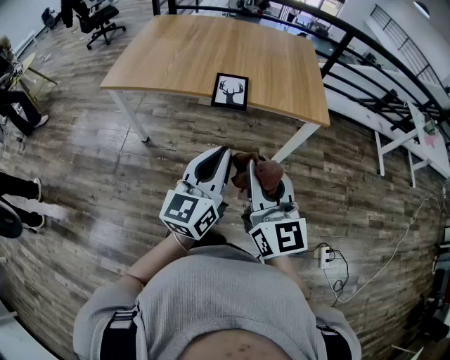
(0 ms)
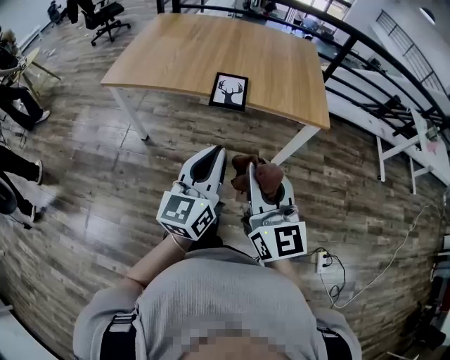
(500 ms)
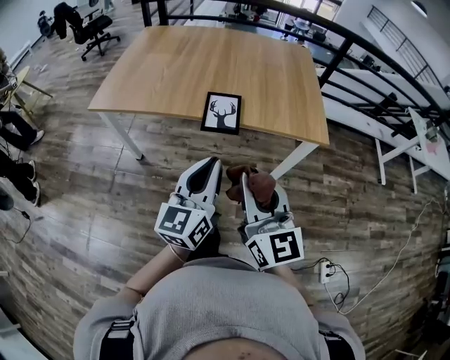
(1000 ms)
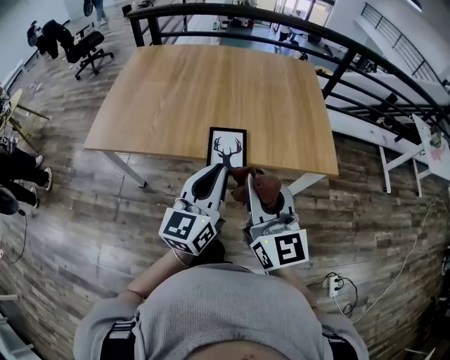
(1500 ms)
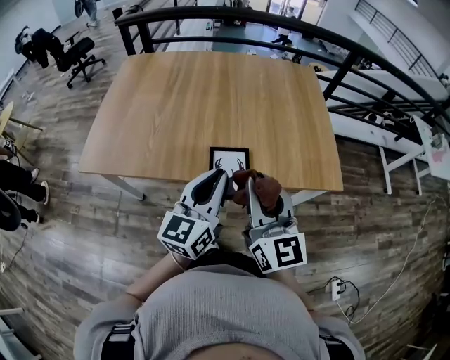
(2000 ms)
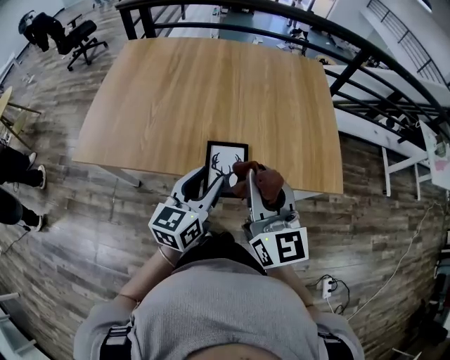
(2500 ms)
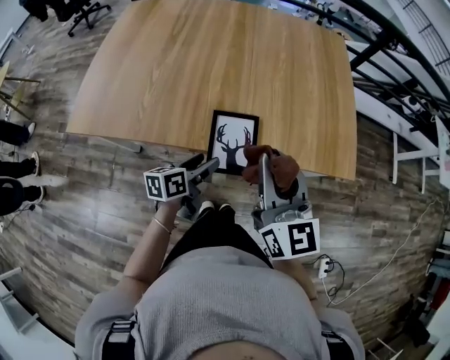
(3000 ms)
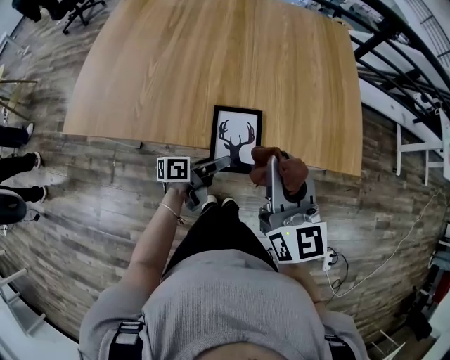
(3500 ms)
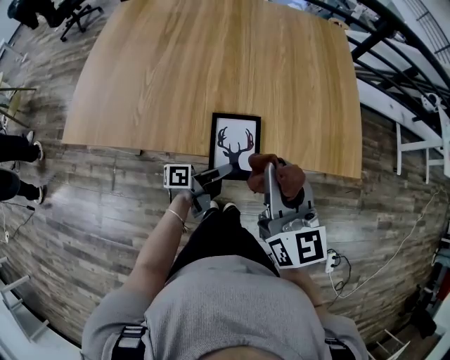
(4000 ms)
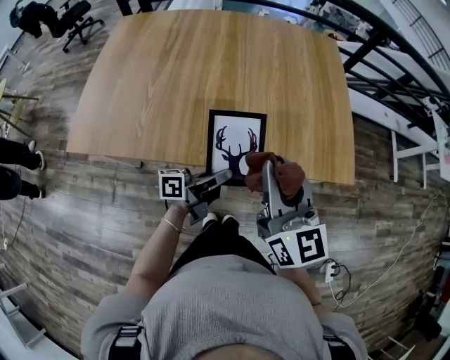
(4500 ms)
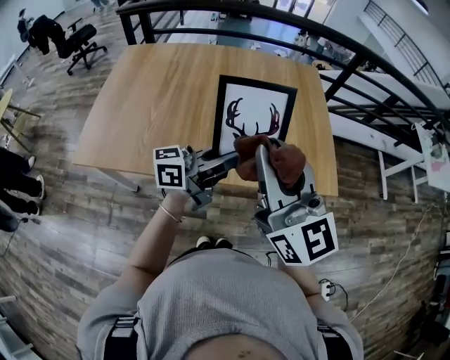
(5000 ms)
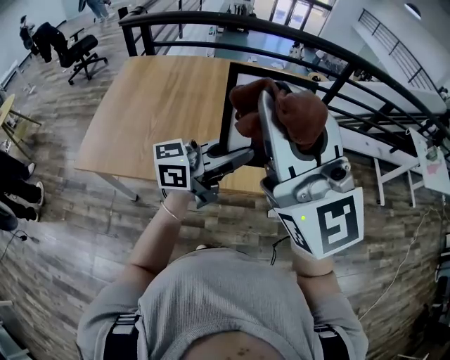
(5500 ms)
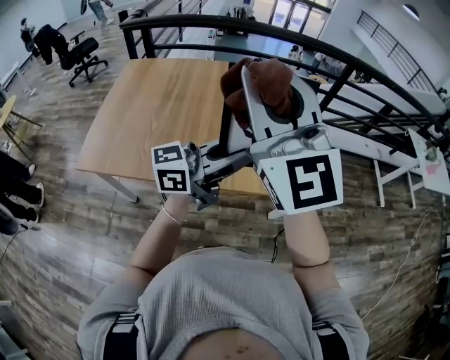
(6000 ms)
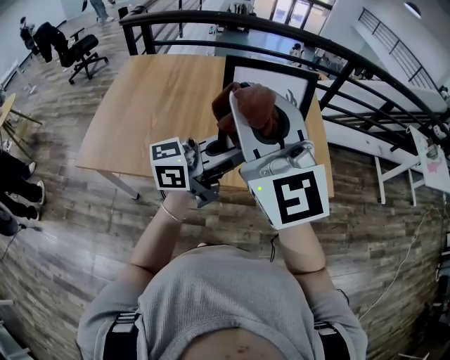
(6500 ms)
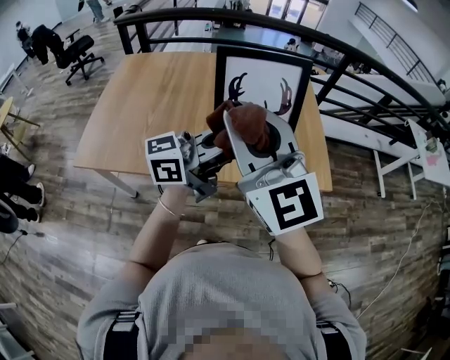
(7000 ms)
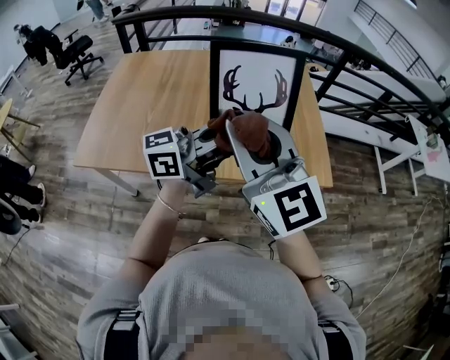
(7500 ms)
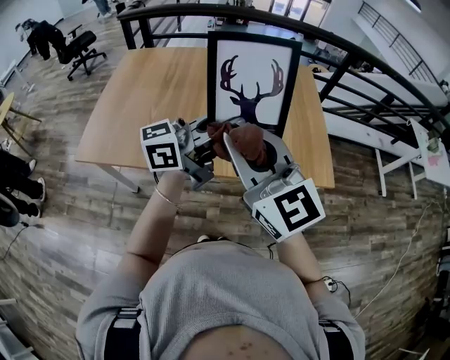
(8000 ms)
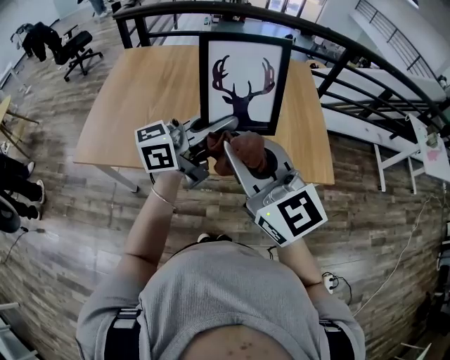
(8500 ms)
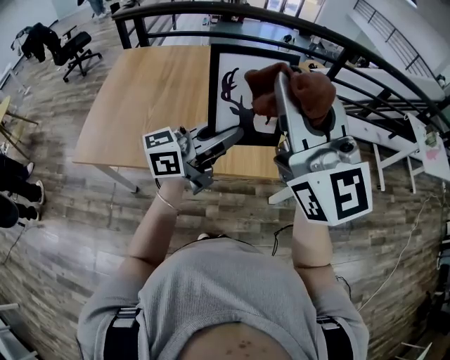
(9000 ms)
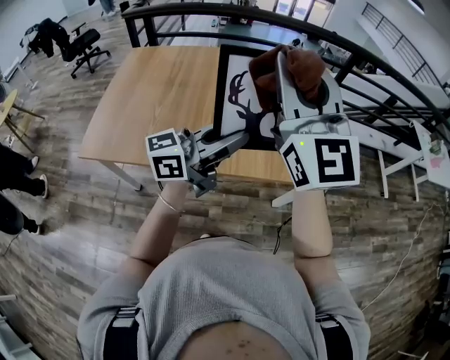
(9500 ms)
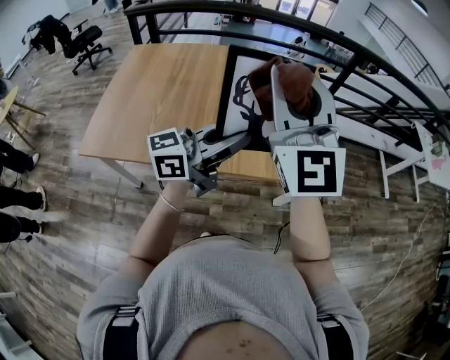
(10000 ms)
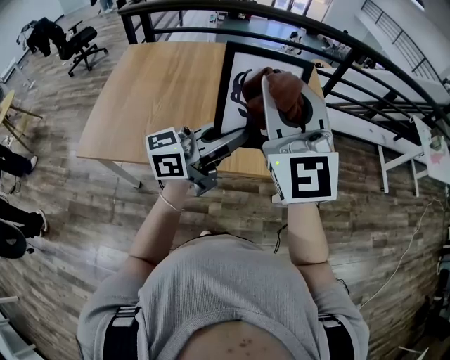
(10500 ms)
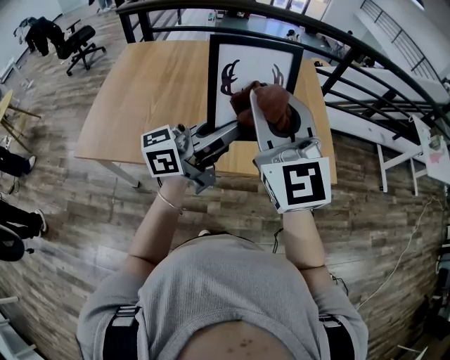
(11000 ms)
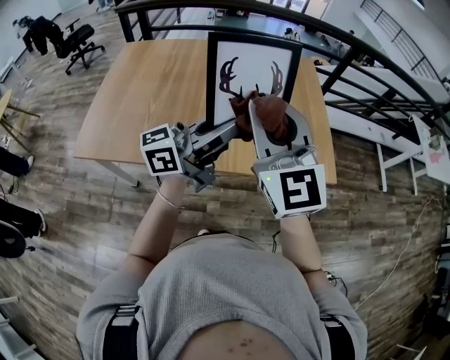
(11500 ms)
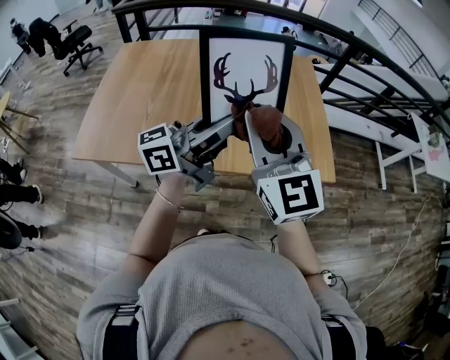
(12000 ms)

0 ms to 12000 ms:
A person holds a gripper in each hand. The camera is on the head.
0 ms to 2000 ms: Both grippers move forward, roughly 35 cm.
2000 ms to 4000 ms: The left gripper goes about 25 cm downward, rolls counterclockwise, seen from behind, by approximately 70 degrees, and opens and closes again. The right gripper travels downward and forward by some 10 cm.
4000 ms to 6000 ms: The grippers both shift upward by roughly 35 cm. The left gripper twists approximately 60 degrees clockwise, seen from behind; the right gripper turns by some 40 degrees.
6000 ms to 8000 ms: The right gripper shifts approximately 15 cm downward and backward, and rotates approximately 20 degrees.
8000 ms to 10000 ms: The right gripper goes roughly 15 cm upward and forward, and rotates roughly 30 degrees.
10000 ms to 12000 ms: The right gripper goes some 10 cm downward.

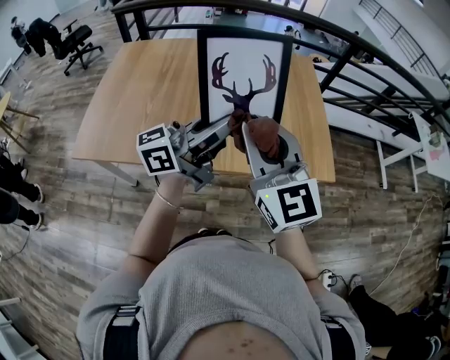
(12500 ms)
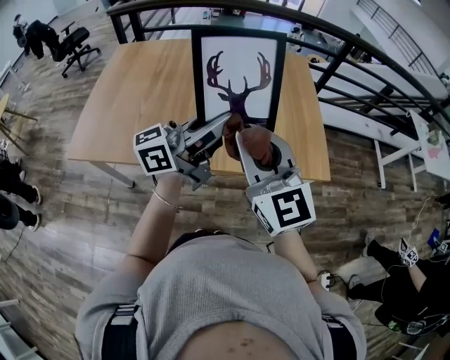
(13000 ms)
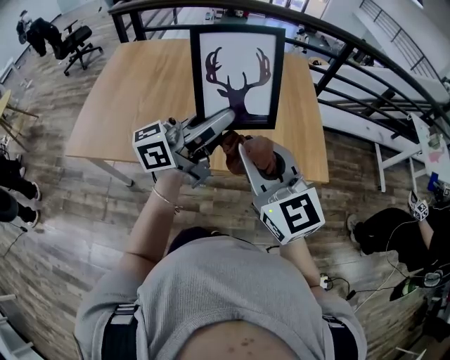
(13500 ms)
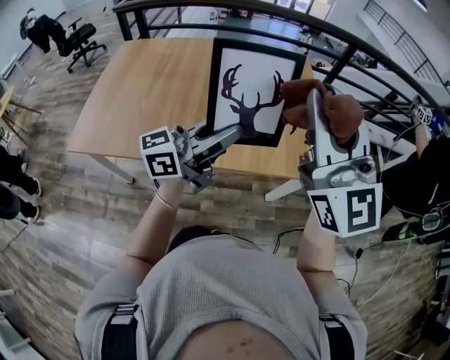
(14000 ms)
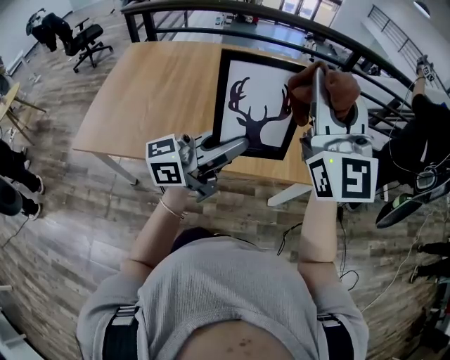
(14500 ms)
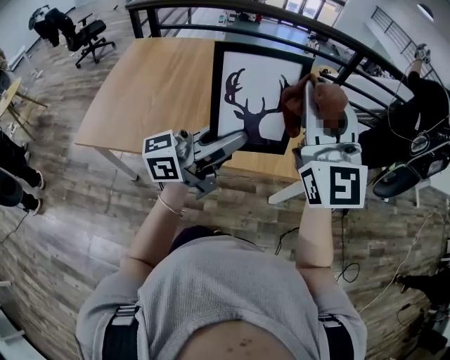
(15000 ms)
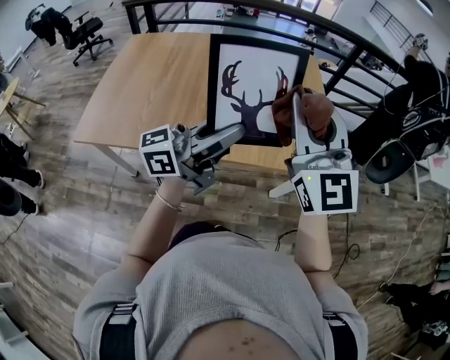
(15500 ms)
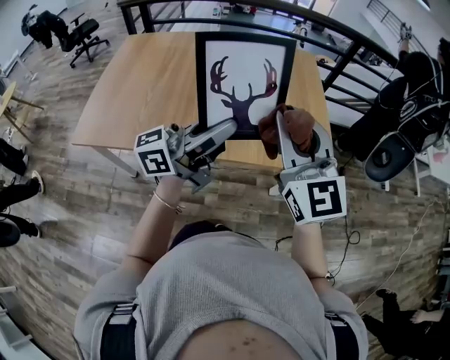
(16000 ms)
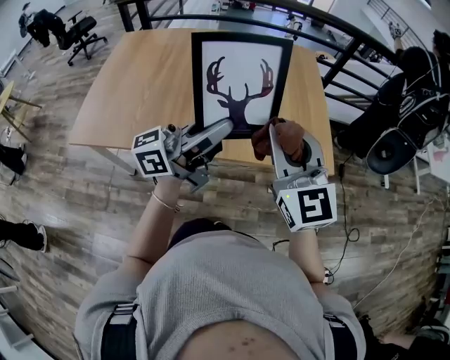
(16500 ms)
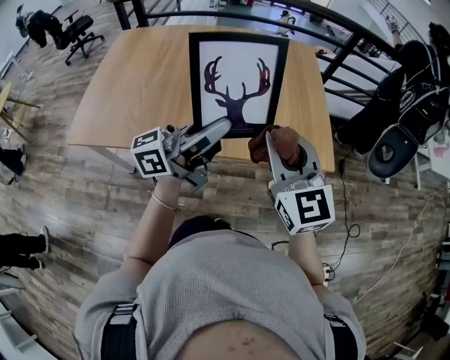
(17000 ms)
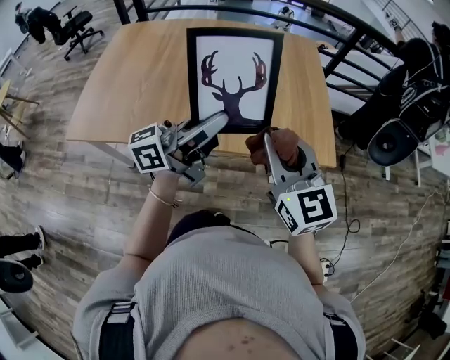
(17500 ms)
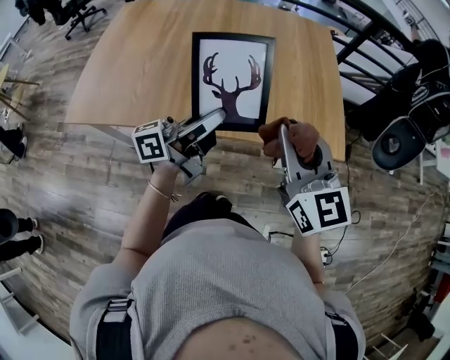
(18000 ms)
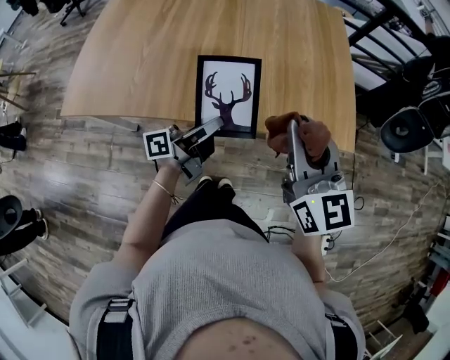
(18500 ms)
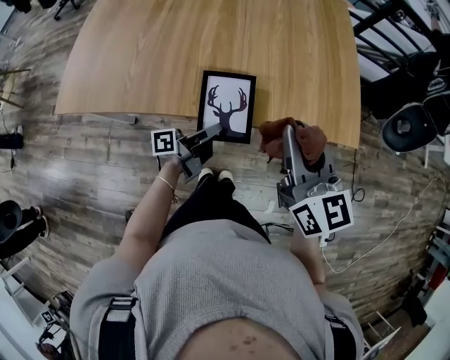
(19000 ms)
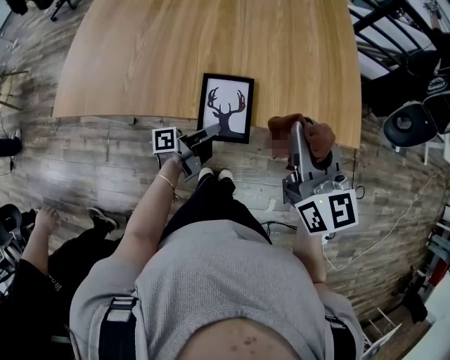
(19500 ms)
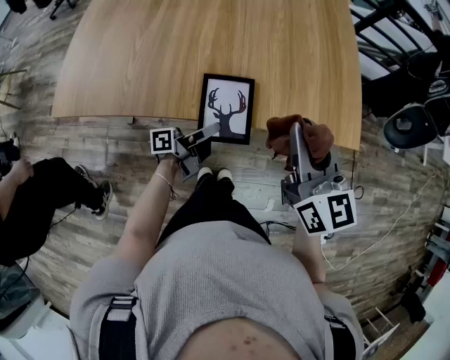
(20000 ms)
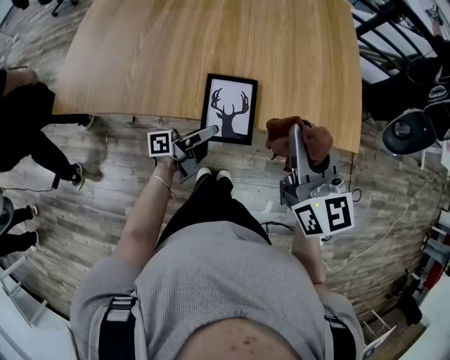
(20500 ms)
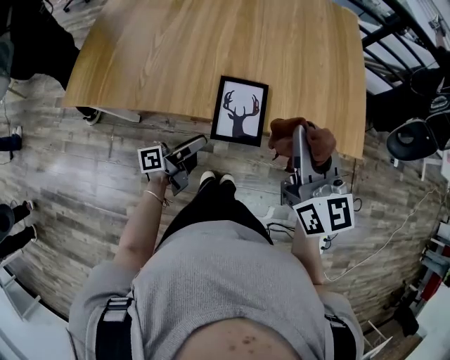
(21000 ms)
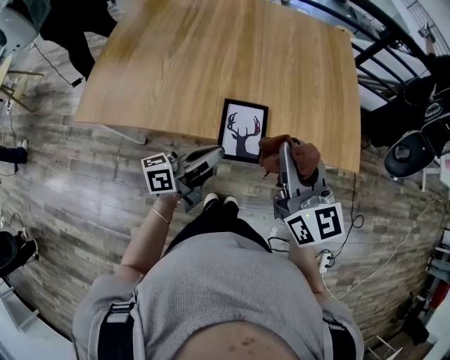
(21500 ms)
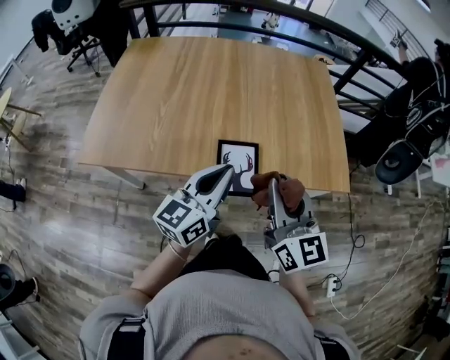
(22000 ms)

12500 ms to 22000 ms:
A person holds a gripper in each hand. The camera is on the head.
12500 ms to 14500 ms: The right gripper goes some 15 cm upward, to the right and forward, and swivels roughly 20 degrees.
14500 ms to 16500 ms: The right gripper is displaced downward by some 15 cm, and changes its angle by roughly 20 degrees.
16500 ms to 18000 ms: The left gripper travels downward and to the left by roughly 10 cm.
18000 ms to 20000 ms: The left gripper shifts roughly 25 cm downward, turns by about 30 degrees, and opens up; the right gripper heads downward, covering approximately 5 cm.
20000 ms to 22000 ms: The left gripper heads upward, covering some 20 cm, rolls clockwise, seen from behind, by about 60 degrees, and closes. The right gripper travels backward and to the left by some 10 cm.

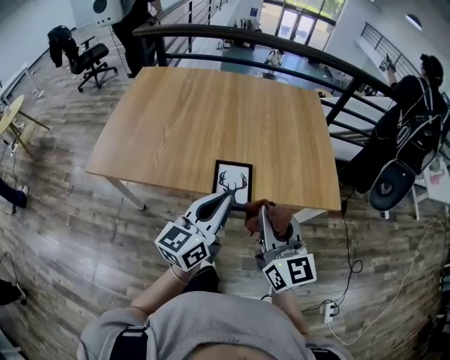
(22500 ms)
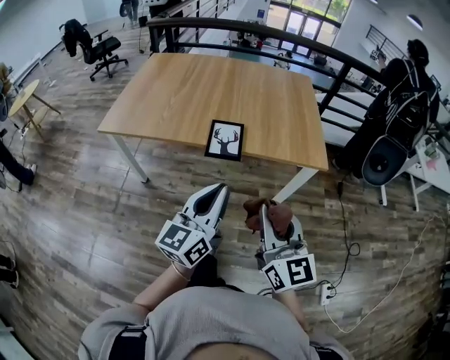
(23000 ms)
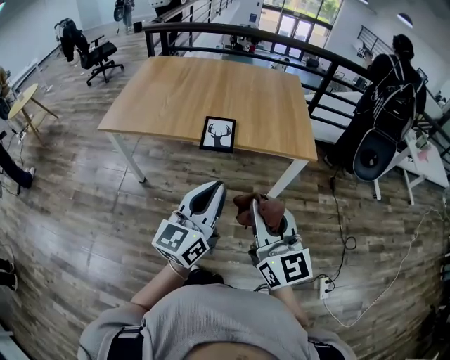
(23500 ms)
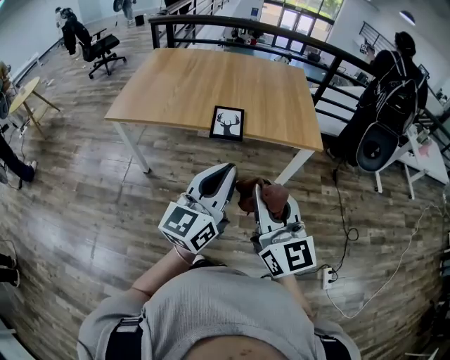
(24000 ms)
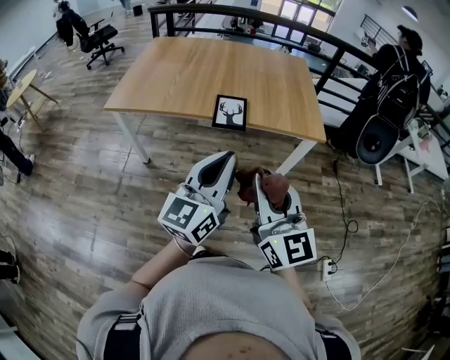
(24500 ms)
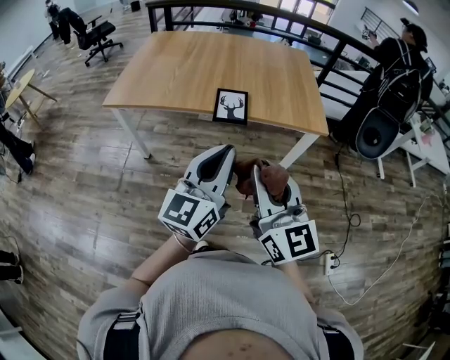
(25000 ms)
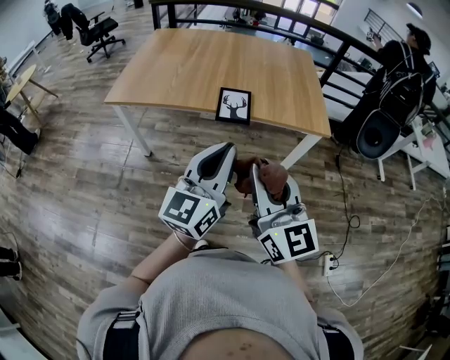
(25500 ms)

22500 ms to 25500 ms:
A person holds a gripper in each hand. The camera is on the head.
22500 ms to 24000 ms: Both grippers travel together backward, about 30 cm.
24000 ms to 25500 ms: The right gripper ends up approximately 5 cm from where it was.

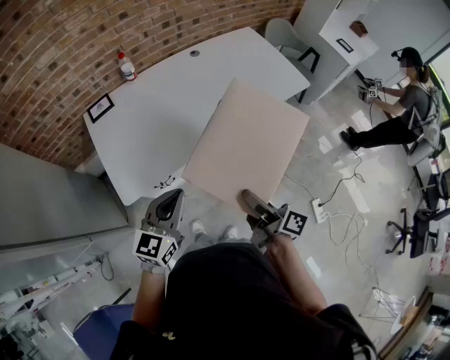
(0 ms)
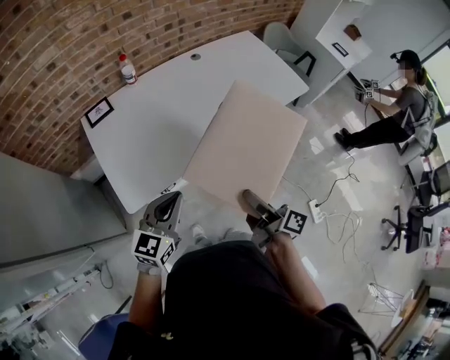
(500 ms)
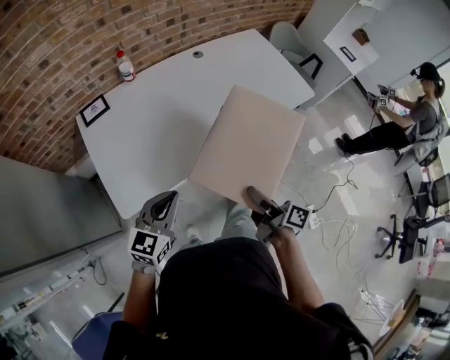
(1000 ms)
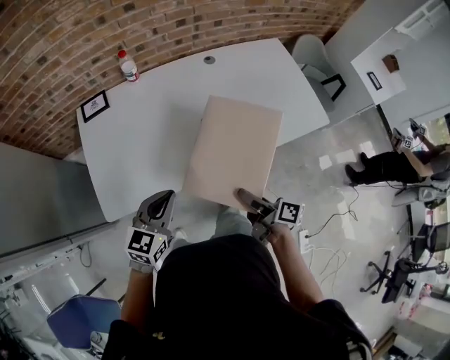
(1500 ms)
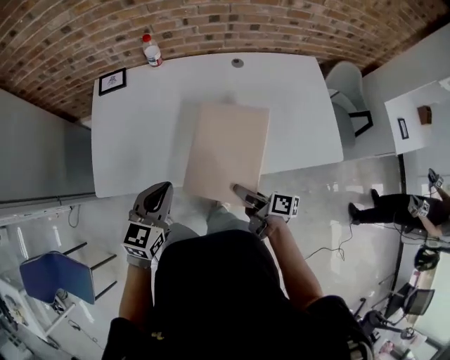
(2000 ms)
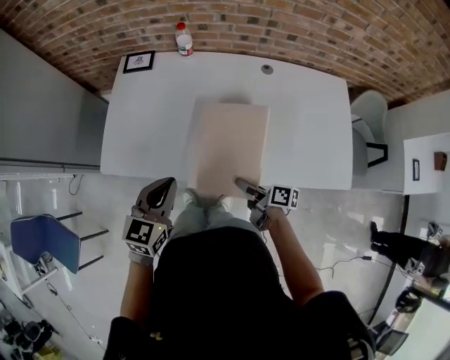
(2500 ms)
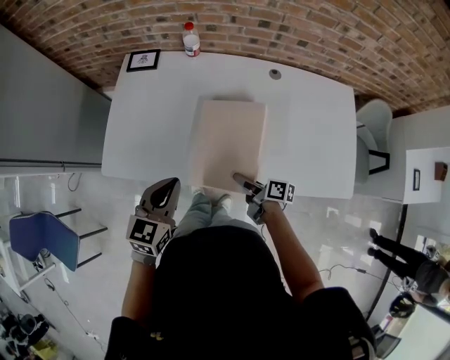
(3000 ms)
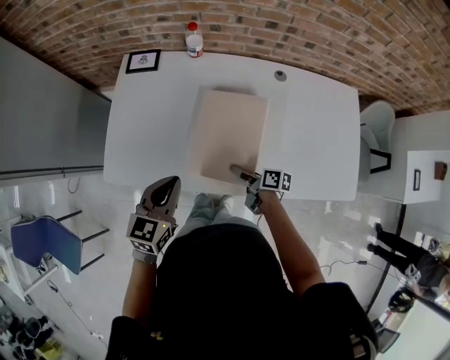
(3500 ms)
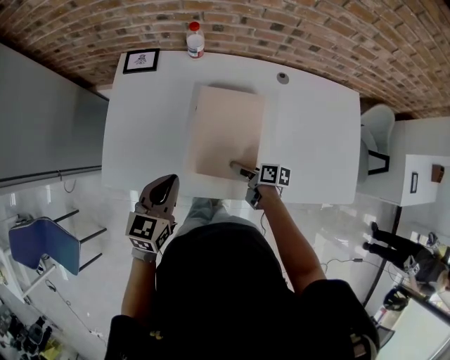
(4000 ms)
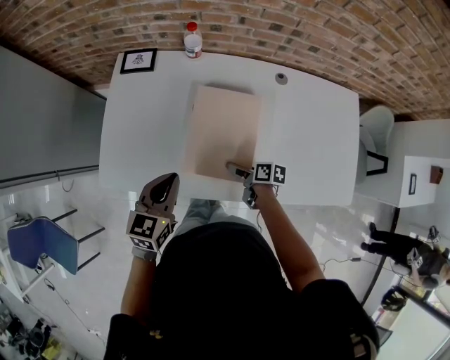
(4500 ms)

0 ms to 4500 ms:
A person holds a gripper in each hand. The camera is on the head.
0 ms to 2000 ms: The right gripper shifts by approximately 30 cm, and turns by approximately 40 degrees. Meanwhile the left gripper ends up about 20 cm from where it was, and changes its angle by about 30 degrees.
2000 ms to 4500 ms: The right gripper goes approximately 20 cm forward and downward, swivels some 30 degrees, and opens its fingers; the left gripper moves forward, roughly 10 cm.
